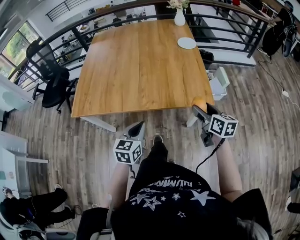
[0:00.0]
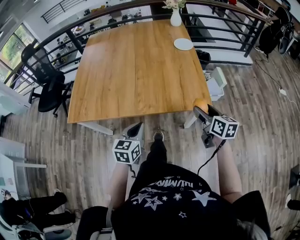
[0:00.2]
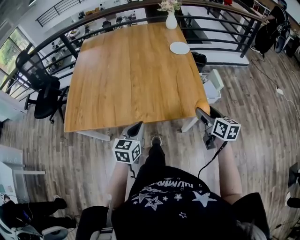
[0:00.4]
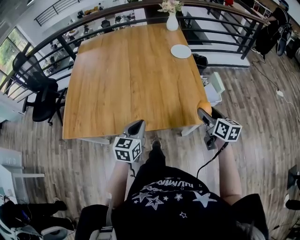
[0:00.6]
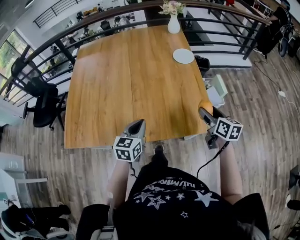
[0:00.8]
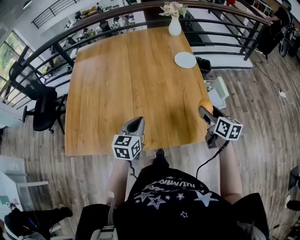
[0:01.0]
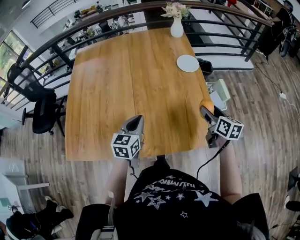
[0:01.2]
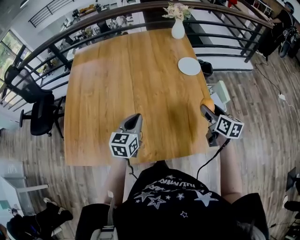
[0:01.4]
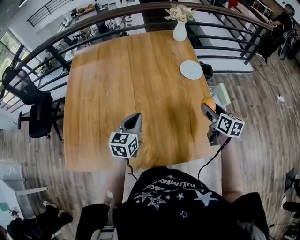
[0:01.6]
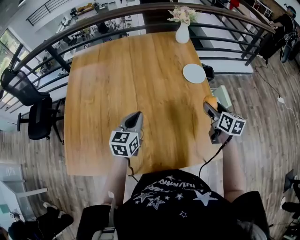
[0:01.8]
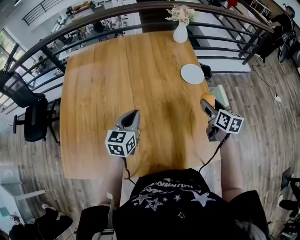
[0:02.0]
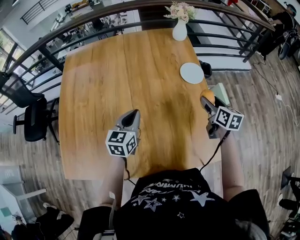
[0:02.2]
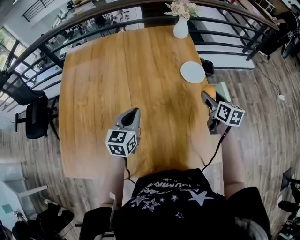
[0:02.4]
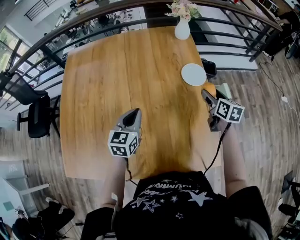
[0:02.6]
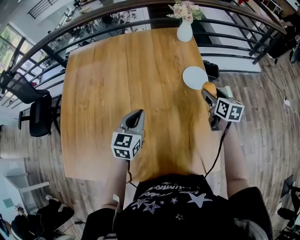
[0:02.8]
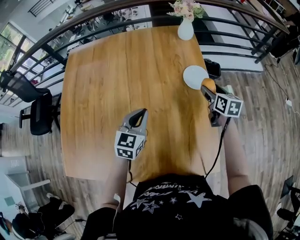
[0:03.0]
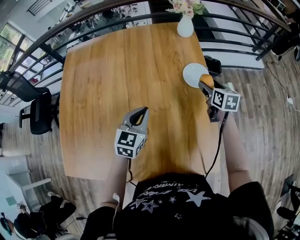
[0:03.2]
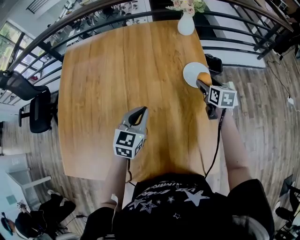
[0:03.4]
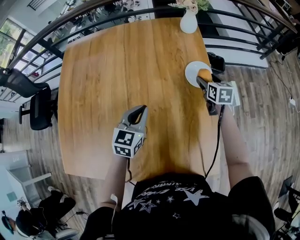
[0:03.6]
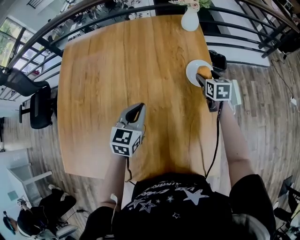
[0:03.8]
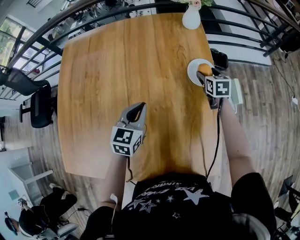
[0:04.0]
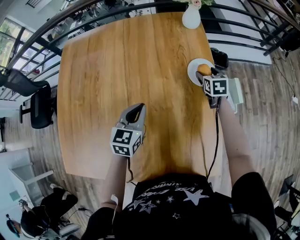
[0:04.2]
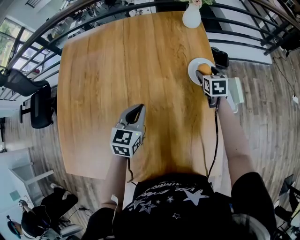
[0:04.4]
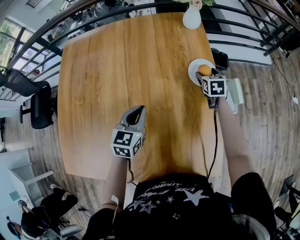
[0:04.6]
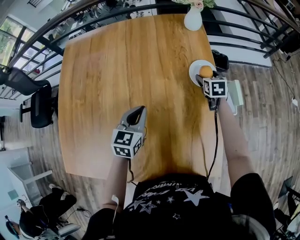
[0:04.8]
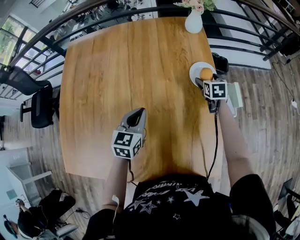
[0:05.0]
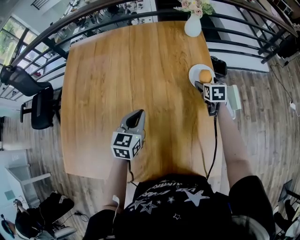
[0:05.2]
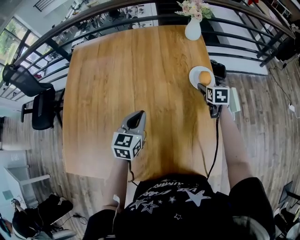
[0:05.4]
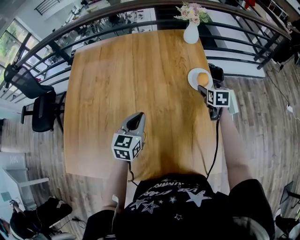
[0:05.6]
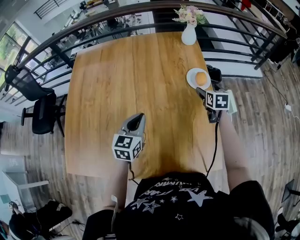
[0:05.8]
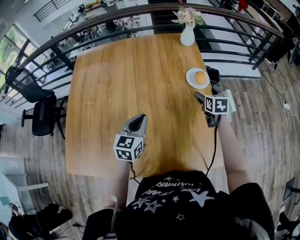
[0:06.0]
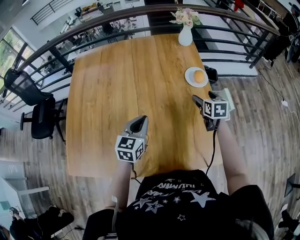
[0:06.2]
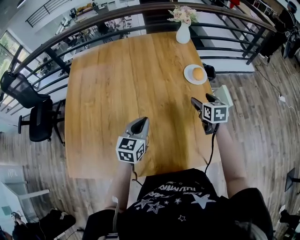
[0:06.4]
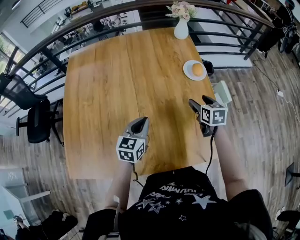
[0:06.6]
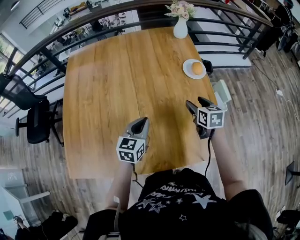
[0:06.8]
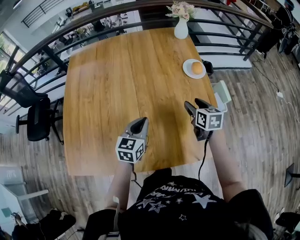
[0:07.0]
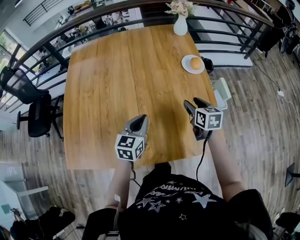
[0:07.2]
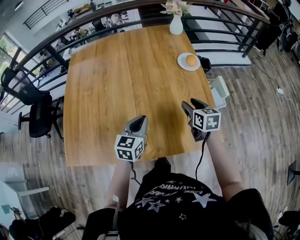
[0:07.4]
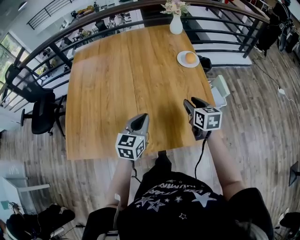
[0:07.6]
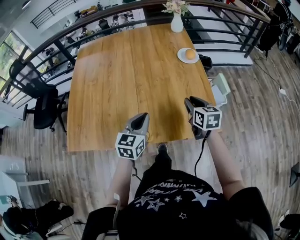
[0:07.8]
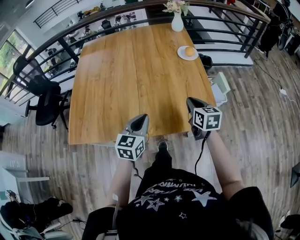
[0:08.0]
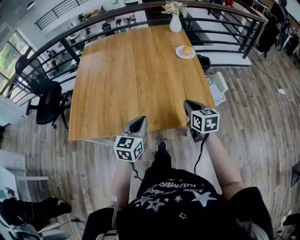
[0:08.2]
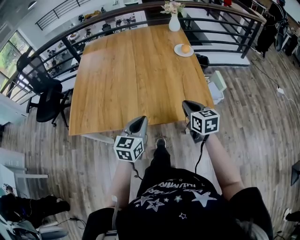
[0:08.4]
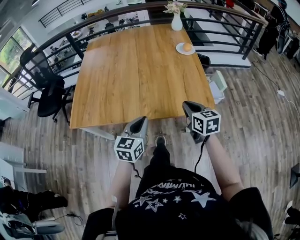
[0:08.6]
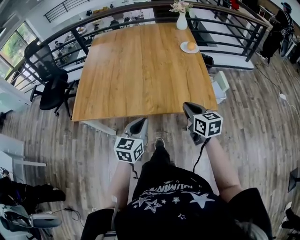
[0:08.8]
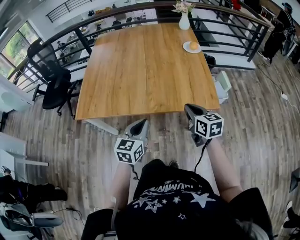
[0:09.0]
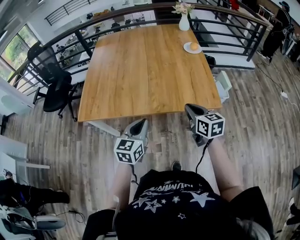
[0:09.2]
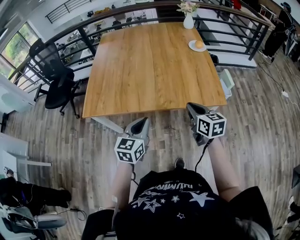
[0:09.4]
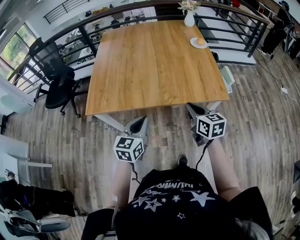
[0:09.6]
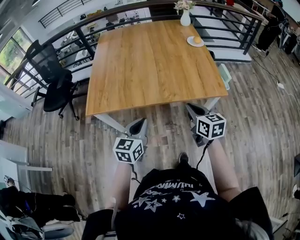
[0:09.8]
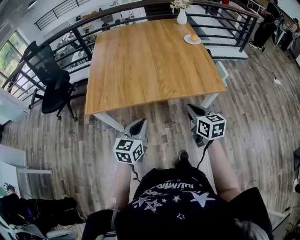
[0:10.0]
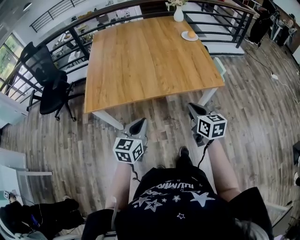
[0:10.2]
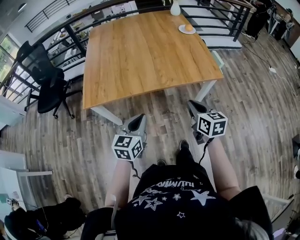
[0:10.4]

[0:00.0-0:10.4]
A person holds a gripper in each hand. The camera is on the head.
0:00.0 to 0:01.4: The grippers both shift forward by about 30 cm.
0:01.4 to 0:03.0: The right gripper travels forward by approximately 25 cm. The left gripper travels forward by about 15 cm.
0:03.0 to 0:04.4: The right gripper goes roughly 15 cm forward and downward, and rotates roughly 20 degrees, while the left gripper moves some 5 cm.
0:04.4 to 0:06.0: The right gripper goes approximately 15 cm backward and upward, while the left gripper goes about 10 cm backward.
0:06.0 to 0:07.4: The right gripper heads backward, covering approximately 20 cm, and closes. Meanwhile the left gripper goes approximately 10 cm backward.
0:07.4 to 0:09.0: The grippers both shift backward by some 30 cm. The right gripper closes up.
0:09.0 to 0:10.4: The left gripper heads to the left and backward, covering about 20 cm; the right gripper heads backward and to the left, covering about 20 cm.

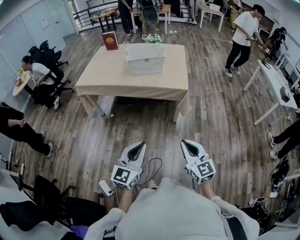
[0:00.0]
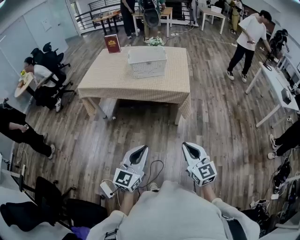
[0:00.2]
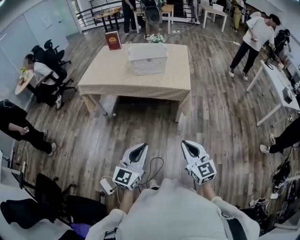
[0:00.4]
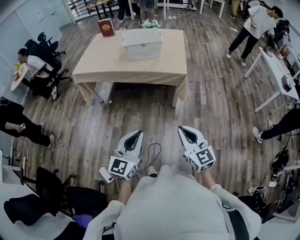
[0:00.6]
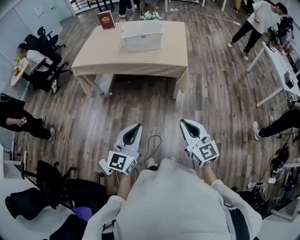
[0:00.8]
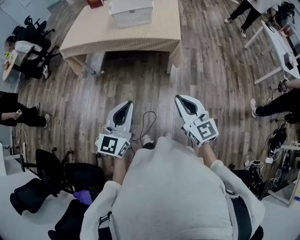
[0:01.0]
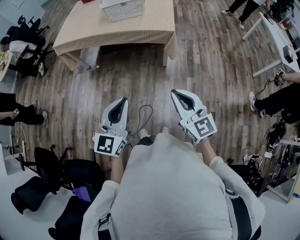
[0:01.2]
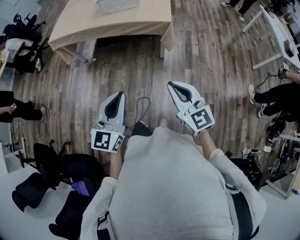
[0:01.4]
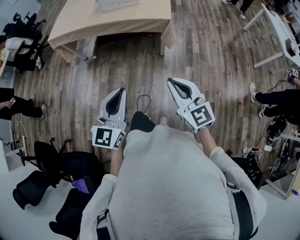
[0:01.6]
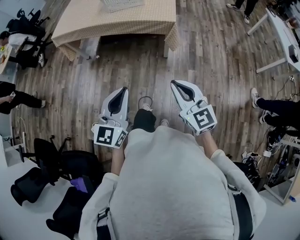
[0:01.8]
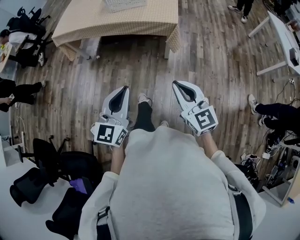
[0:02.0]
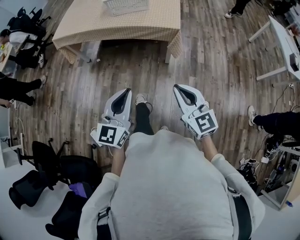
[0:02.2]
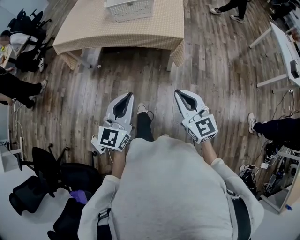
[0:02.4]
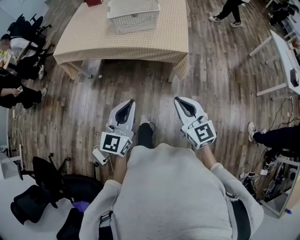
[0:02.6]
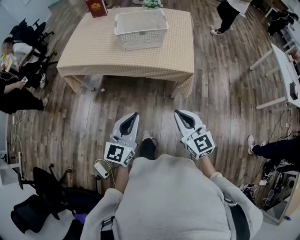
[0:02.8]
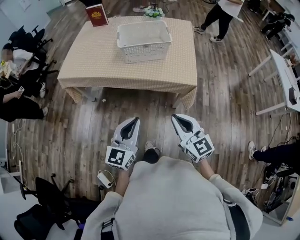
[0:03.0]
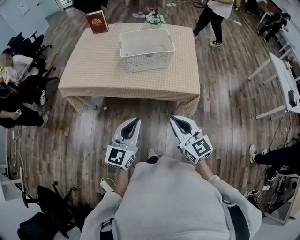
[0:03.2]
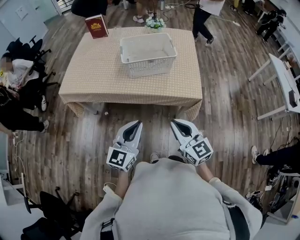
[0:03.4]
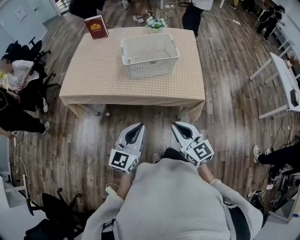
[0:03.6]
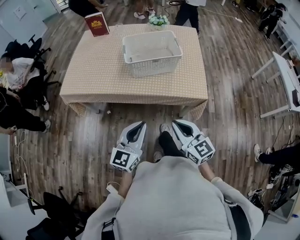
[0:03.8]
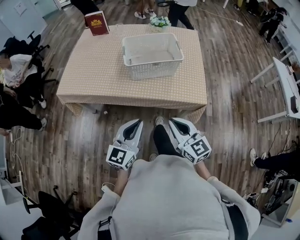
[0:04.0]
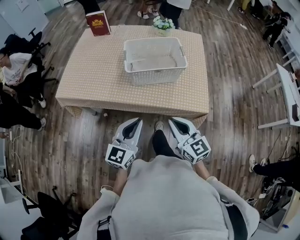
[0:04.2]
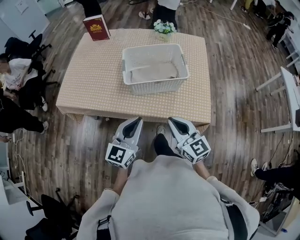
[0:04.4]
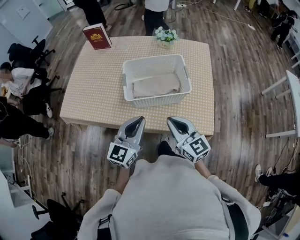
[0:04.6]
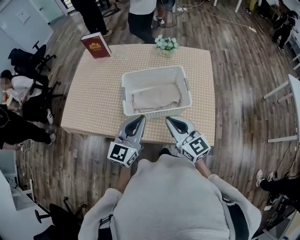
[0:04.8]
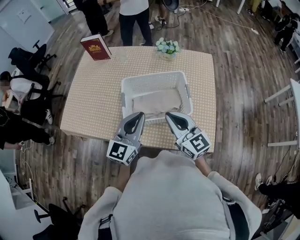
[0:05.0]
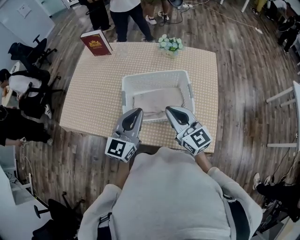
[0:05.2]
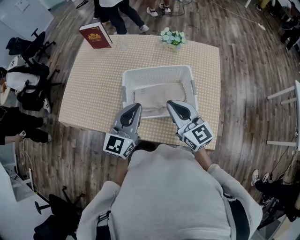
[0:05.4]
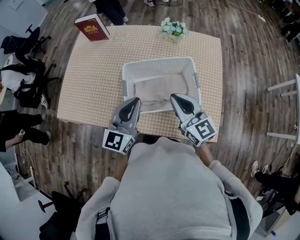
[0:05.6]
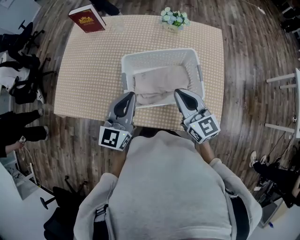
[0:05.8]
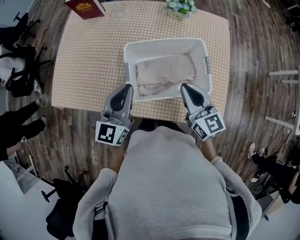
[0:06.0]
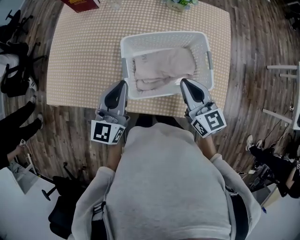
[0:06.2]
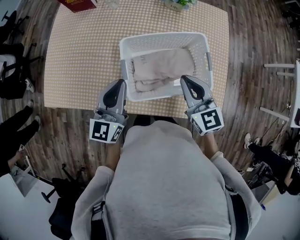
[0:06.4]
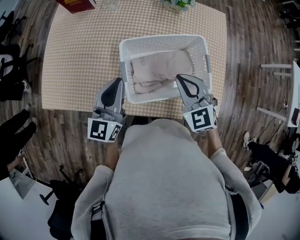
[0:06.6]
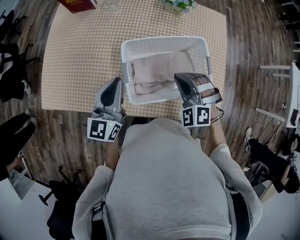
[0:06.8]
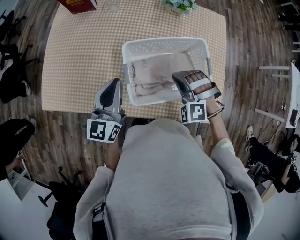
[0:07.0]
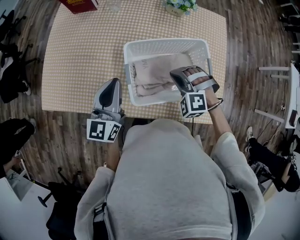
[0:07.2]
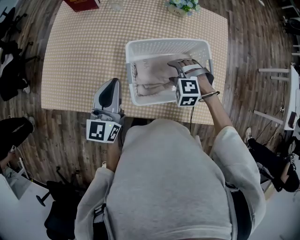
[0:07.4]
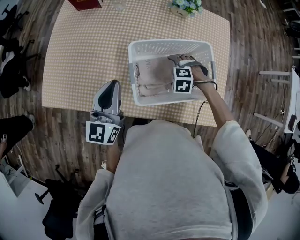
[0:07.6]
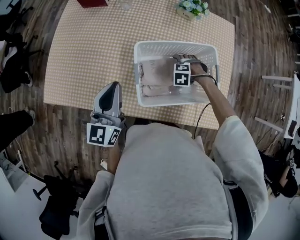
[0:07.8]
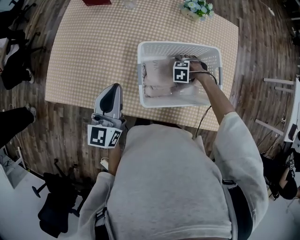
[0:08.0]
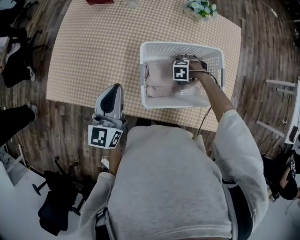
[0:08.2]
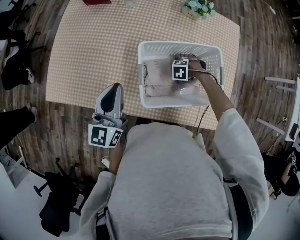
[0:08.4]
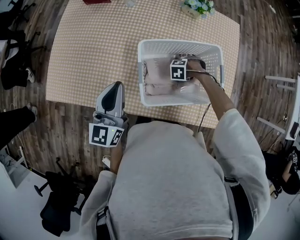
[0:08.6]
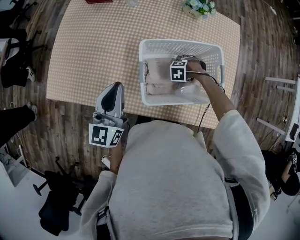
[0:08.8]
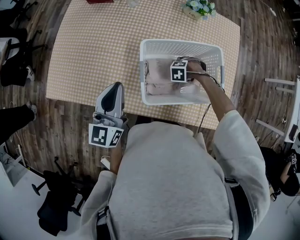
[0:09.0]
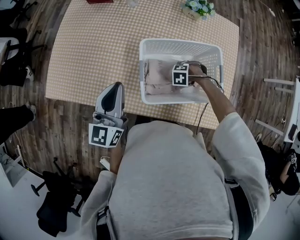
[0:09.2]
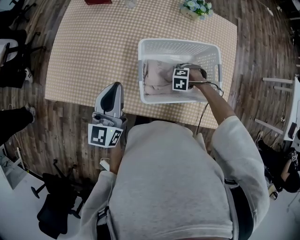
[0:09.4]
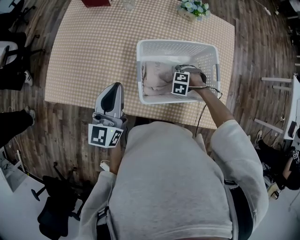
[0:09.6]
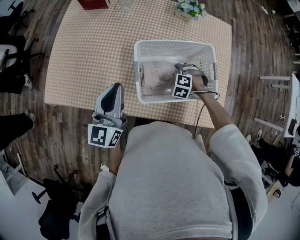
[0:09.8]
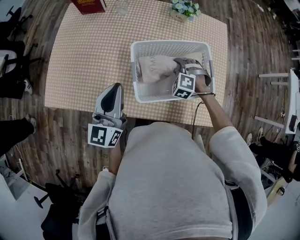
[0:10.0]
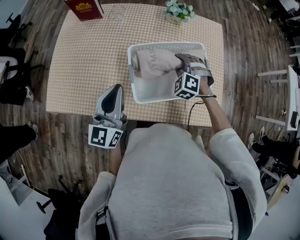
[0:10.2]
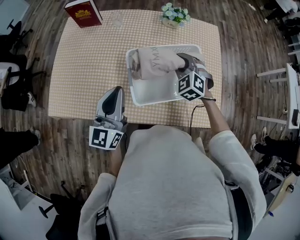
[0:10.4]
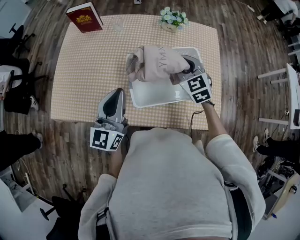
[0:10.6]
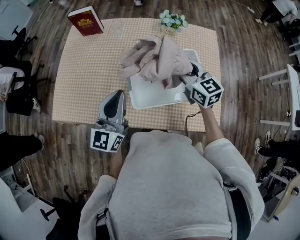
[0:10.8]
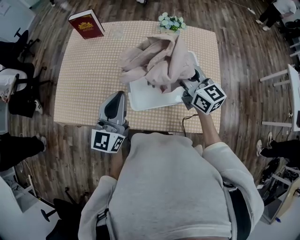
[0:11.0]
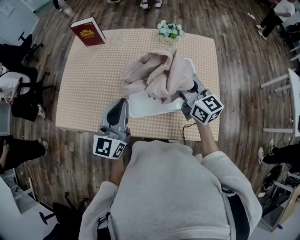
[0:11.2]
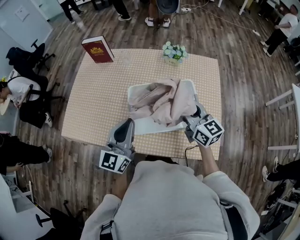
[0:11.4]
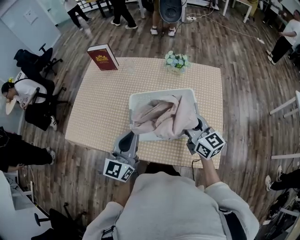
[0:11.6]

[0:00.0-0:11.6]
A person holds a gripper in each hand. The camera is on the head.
0:00.0 to 0:01.4: The two grippers go roughly 5 cm to the right.
0:01.4 to 0:02.8: Both grippers move forward, about 25 cm.
0:02.8 to 0:04.4: The grippers both shift forward by approximately 35 cm.
0:04.4 to 0:05.8: Both grippers move forward, approximately 25 cm.
0:05.8 to 0:07.2: The right gripper heads downward, forward and to the left, covering approximately 15 cm, and rolls counterclockwise, seen from behind, by roughly 70 degrees; the left gripper travels to the left and forward by some 10 cm.
0:07.2 to 0:08.8: The right gripper moves downward, roughly 20 cm, tilts its fingers about 30 degrees downward, and opens.
0:08.8 to 0:10.2: The right gripper travels upward by some 20 cm, tilts its fingers roughly 40 degrees upward, and closes.
0:10.2 to 0:11.6: The right gripper travels upward, backward and to the right by some 20 cm, and tilts its fingers roughly 40 degrees upward, while the left gripper moves to the right and backward, roughly 10 cm.

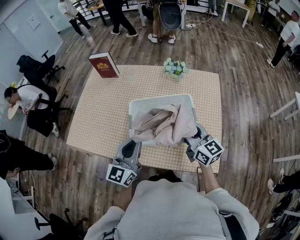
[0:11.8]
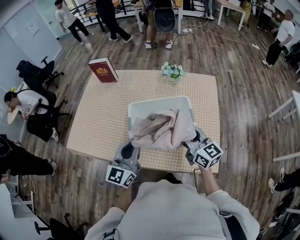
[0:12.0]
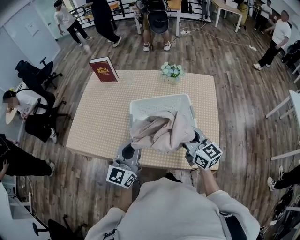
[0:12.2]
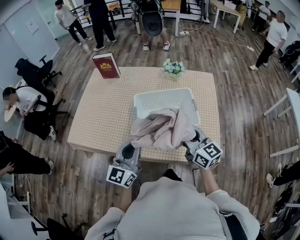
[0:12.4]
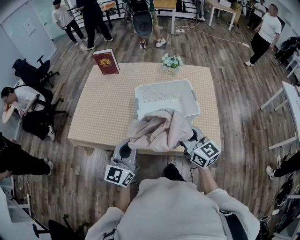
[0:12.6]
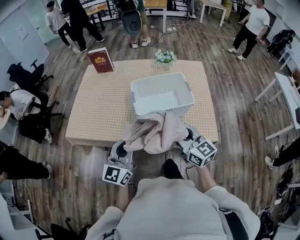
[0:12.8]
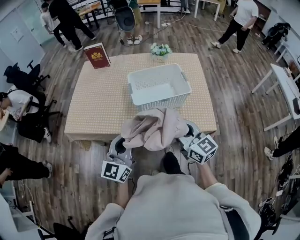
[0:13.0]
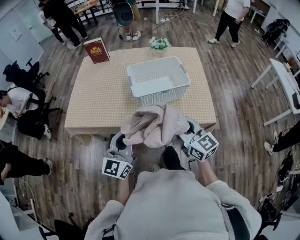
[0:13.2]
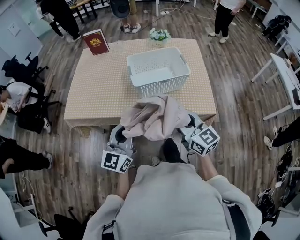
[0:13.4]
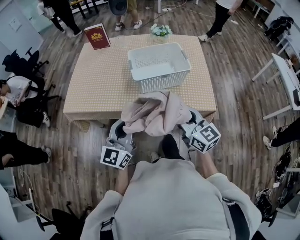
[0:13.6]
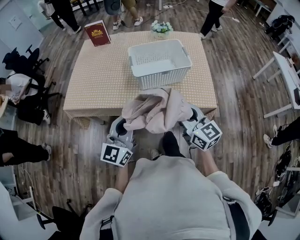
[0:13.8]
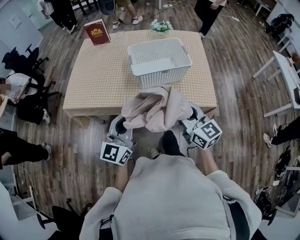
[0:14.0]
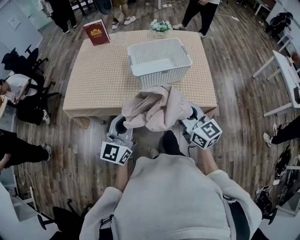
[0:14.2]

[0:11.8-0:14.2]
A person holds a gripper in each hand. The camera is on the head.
0:11.8 to 0:13.0: The grippers both shift backward and to the left by about 25 cm.
0:13.0 to 0:14.2: The two grippers go roughly 5 cm backward.
